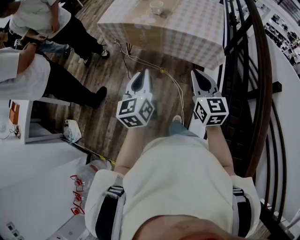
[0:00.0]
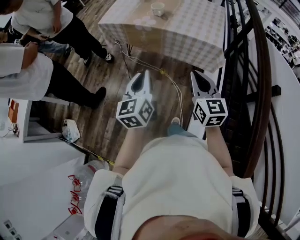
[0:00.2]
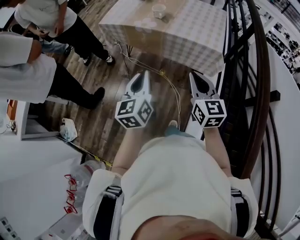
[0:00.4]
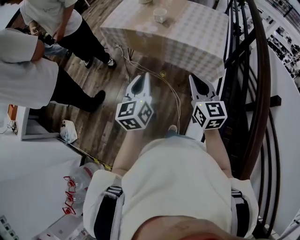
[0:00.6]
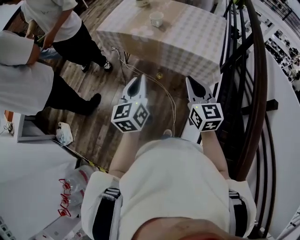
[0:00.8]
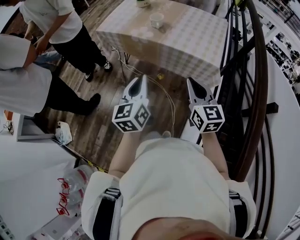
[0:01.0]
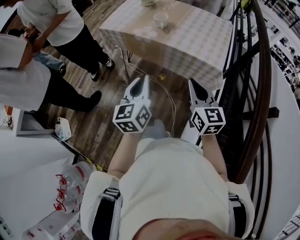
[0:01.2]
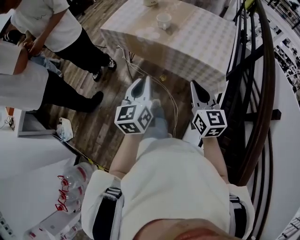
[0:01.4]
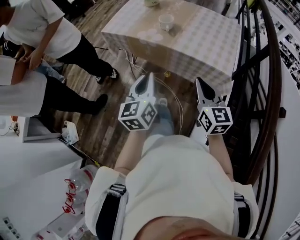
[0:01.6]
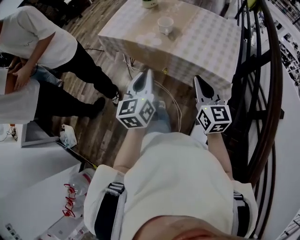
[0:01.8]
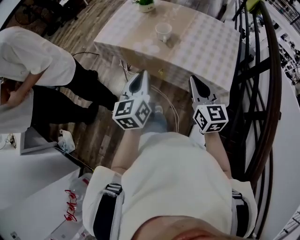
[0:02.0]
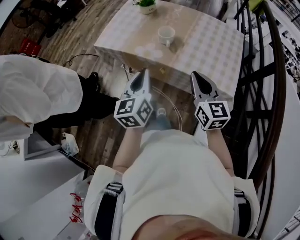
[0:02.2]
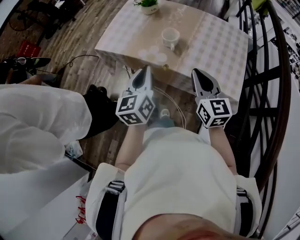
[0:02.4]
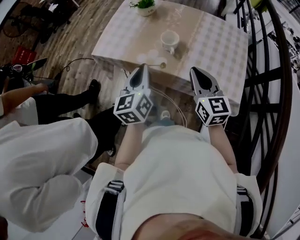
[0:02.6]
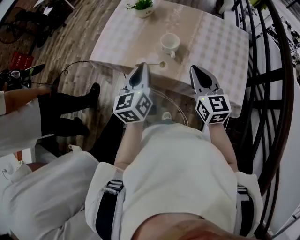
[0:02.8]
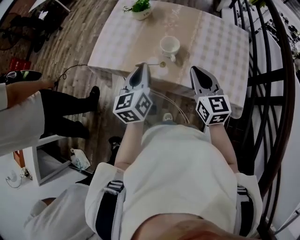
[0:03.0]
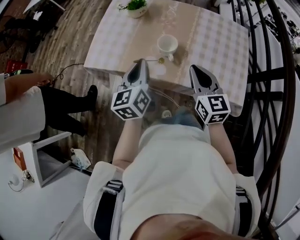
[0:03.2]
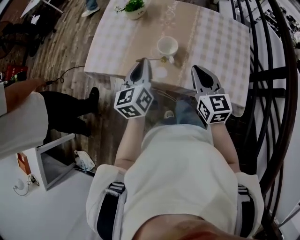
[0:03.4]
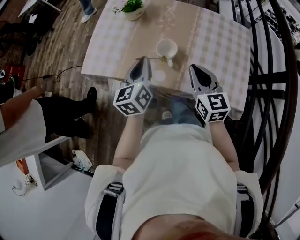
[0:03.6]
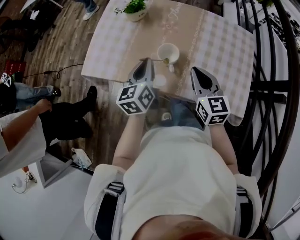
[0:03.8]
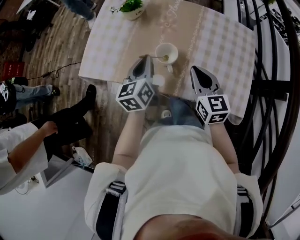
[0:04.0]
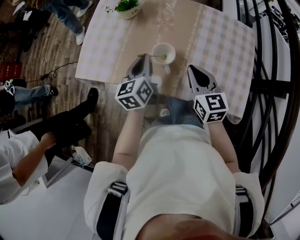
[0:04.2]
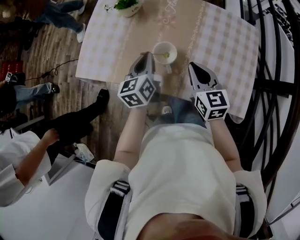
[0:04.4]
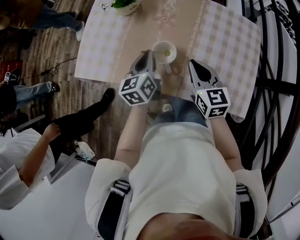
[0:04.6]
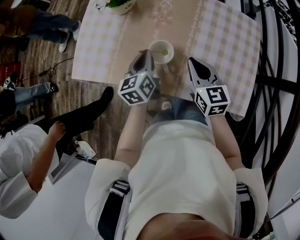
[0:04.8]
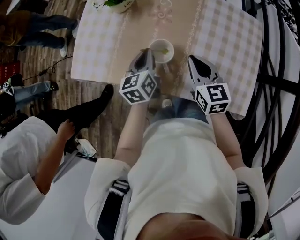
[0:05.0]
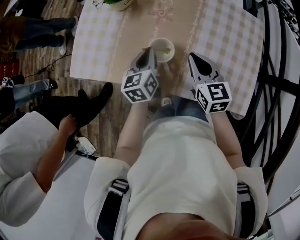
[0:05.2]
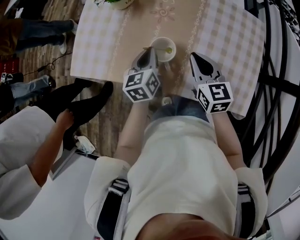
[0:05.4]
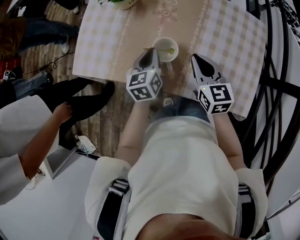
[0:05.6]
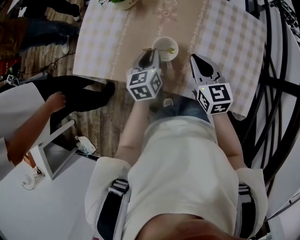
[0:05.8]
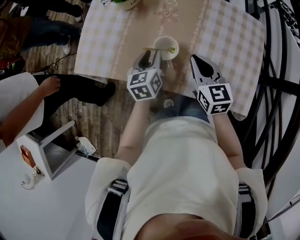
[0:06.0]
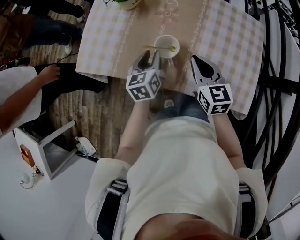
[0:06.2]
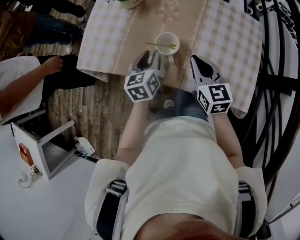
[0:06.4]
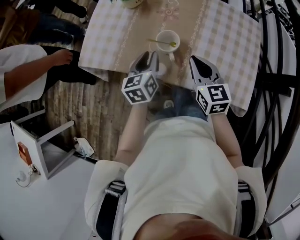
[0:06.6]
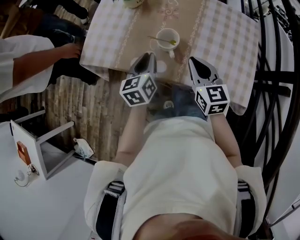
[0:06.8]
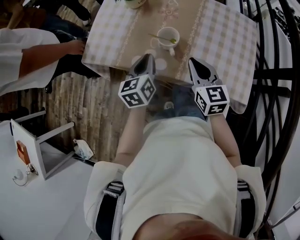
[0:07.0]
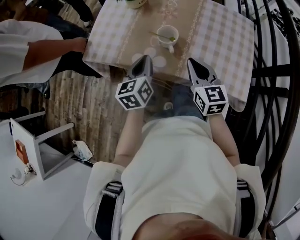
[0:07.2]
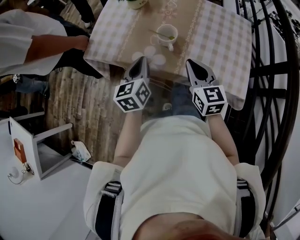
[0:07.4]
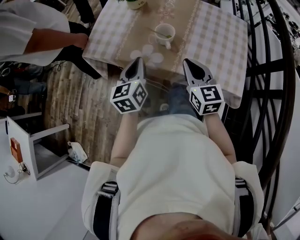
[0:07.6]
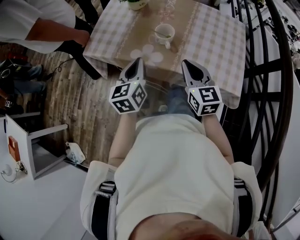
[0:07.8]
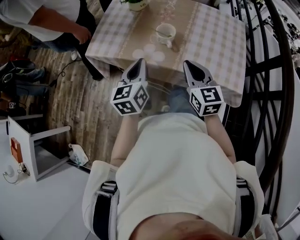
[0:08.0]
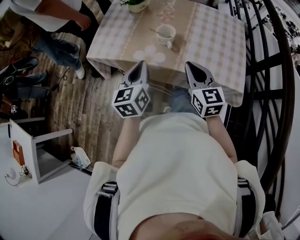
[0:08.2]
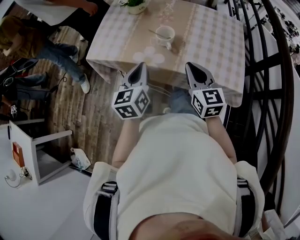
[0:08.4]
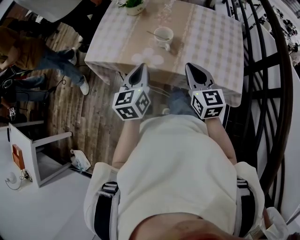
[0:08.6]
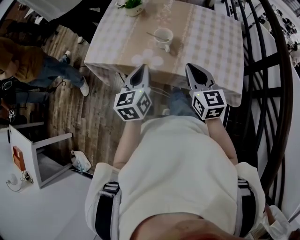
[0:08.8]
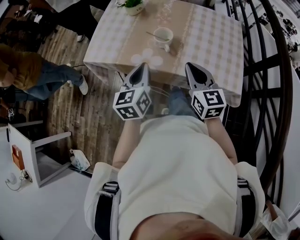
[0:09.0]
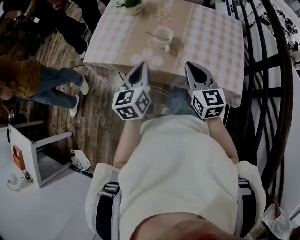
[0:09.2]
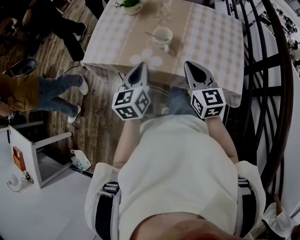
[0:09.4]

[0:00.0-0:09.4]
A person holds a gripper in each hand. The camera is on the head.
0:00.0 to 0:01.6: Both grippers travel together forward, some 10 cm.
0:01.6 to 0:03.2: Both grippers travel together forward, about 30 cm.
0:03.2 to 0:04.8: The right gripper shifts about 15 cm forward and downward; the left gripper is displaced downward, forward and to the right by roughly 15 cm.
0:04.8 to 0:06.2: The left gripper opens.
0:06.2 to 0:07.8: The right gripper goes some 10 cm backward and upward, while the left gripper is displaced upward and backward by about 15 cm, and closes up.
0:07.8 to 0:09.4: The grippers stay close to where they were, moving slightly.

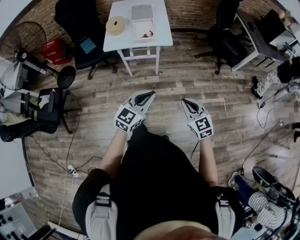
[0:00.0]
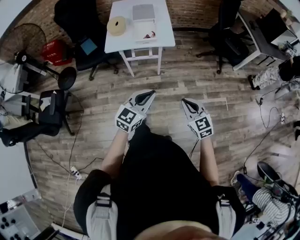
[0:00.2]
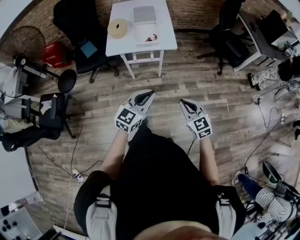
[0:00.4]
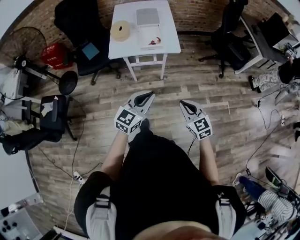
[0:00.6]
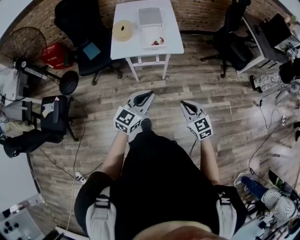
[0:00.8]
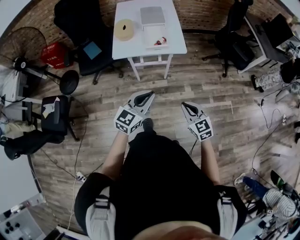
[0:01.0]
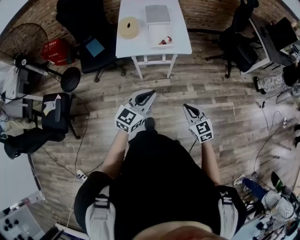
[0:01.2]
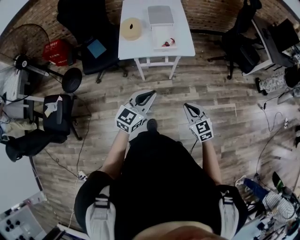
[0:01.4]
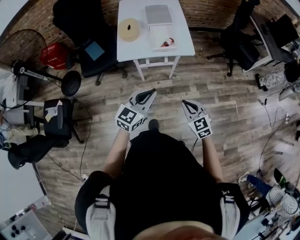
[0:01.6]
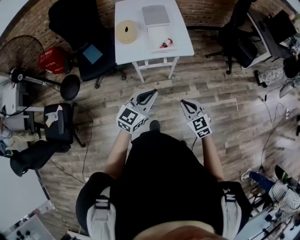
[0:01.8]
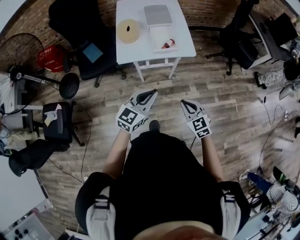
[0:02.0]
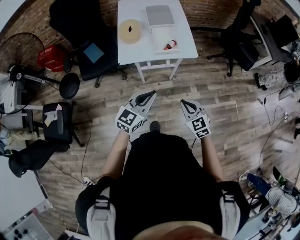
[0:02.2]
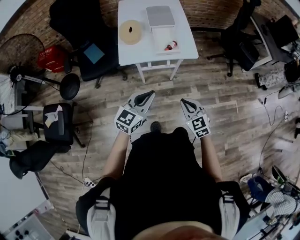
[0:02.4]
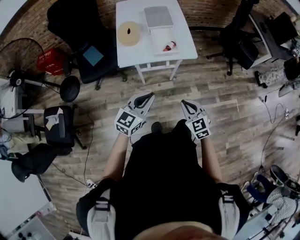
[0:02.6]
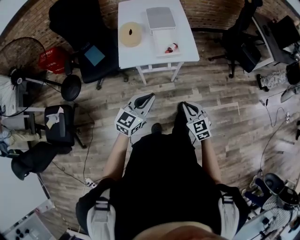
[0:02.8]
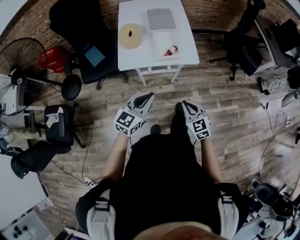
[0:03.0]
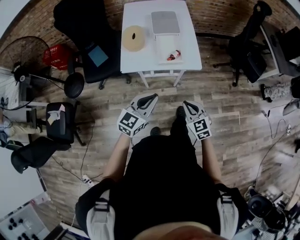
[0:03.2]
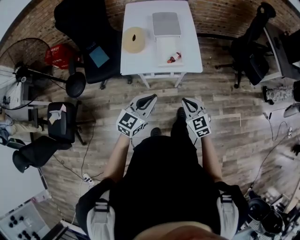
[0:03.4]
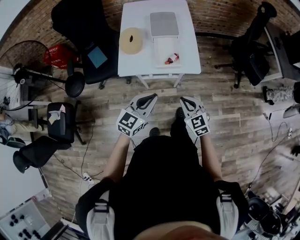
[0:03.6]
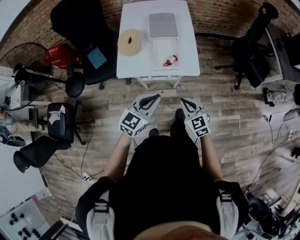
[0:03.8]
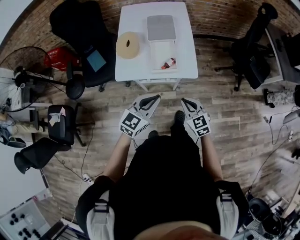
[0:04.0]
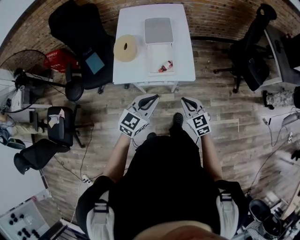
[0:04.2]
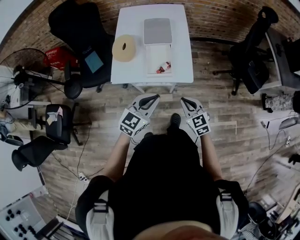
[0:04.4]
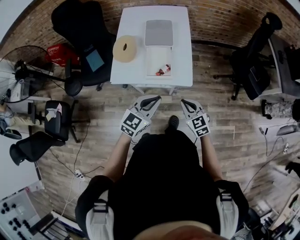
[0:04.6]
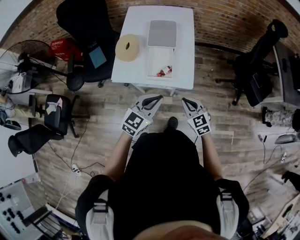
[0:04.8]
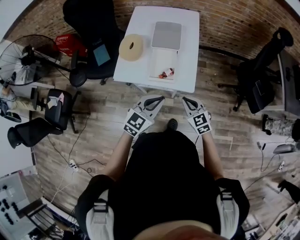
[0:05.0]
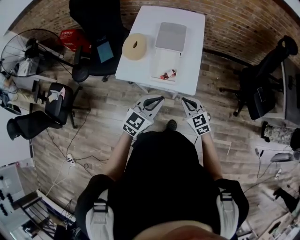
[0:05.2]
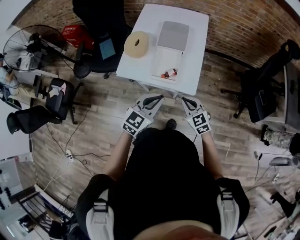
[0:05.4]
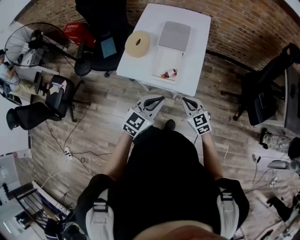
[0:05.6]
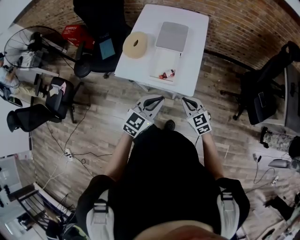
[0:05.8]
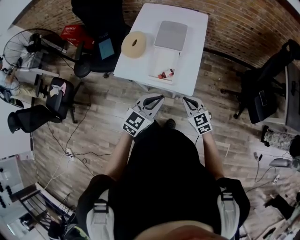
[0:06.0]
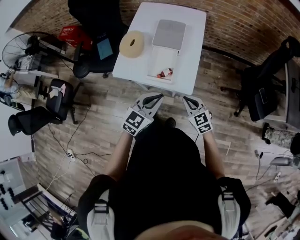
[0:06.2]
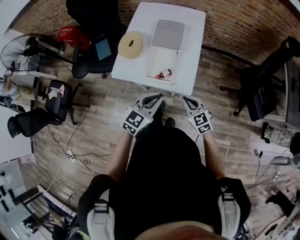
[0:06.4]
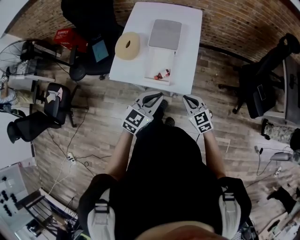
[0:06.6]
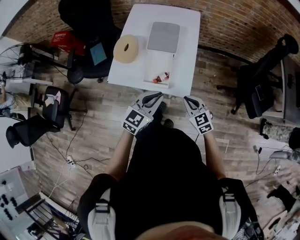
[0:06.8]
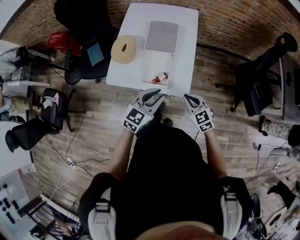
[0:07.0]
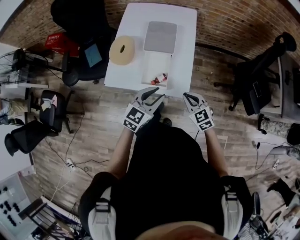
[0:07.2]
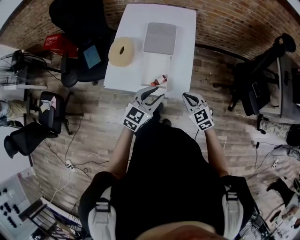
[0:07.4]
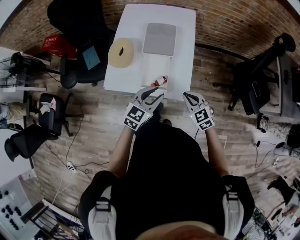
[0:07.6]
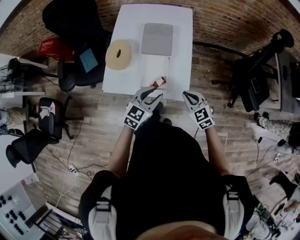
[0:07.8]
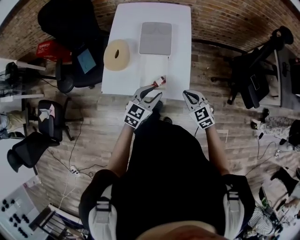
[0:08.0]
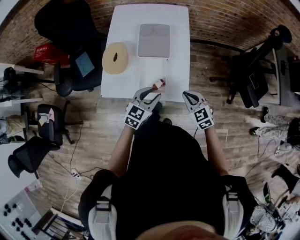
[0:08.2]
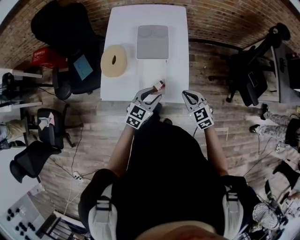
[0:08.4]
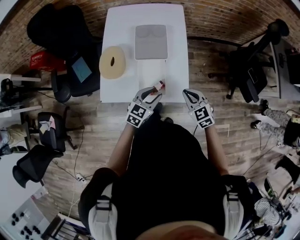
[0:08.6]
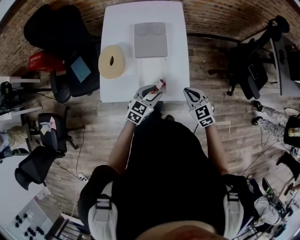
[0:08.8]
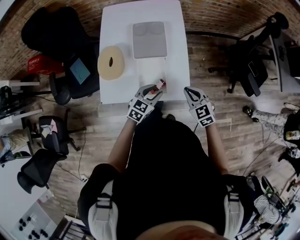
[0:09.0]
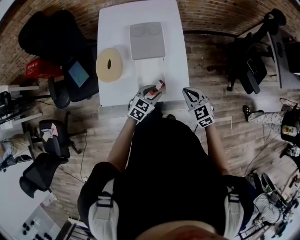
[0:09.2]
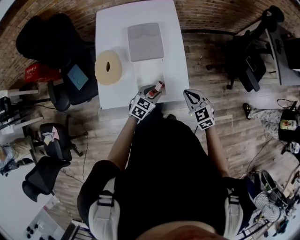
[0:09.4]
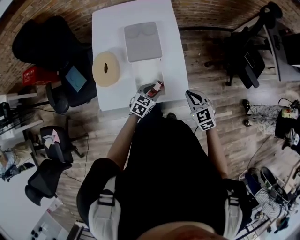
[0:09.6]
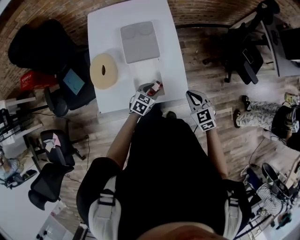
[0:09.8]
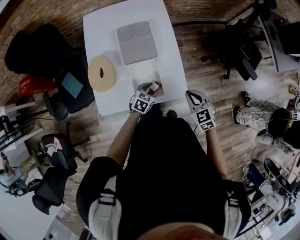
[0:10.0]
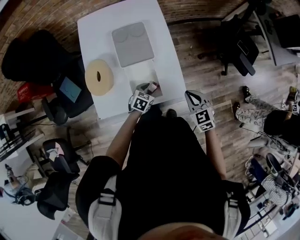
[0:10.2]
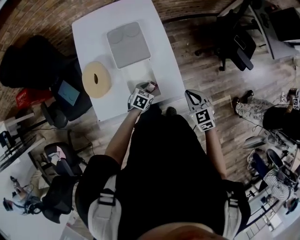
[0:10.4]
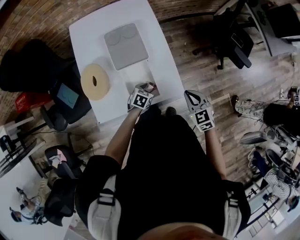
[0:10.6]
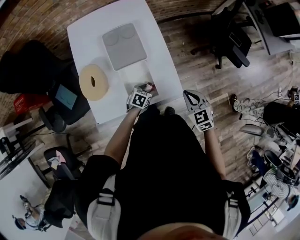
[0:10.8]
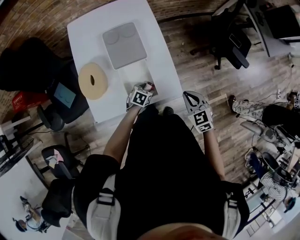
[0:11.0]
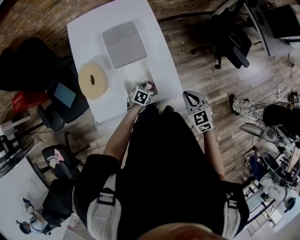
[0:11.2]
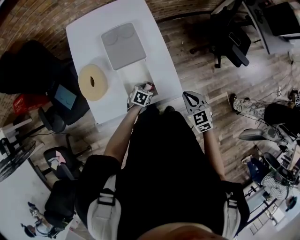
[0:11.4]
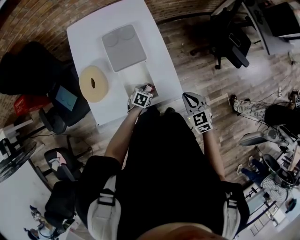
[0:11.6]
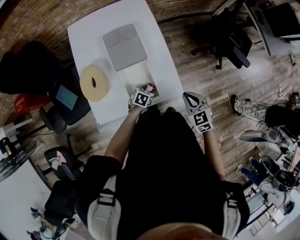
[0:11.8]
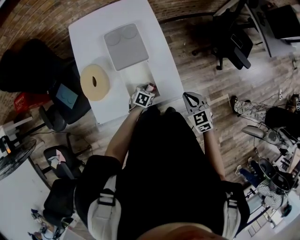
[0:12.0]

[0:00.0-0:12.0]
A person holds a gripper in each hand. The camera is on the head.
0:00.0 to 0:01.6: The two grippers go roughly 25 cm to the left and forward.
0:01.6 to 0:03.0: The two grippers go some 10 cm forward.
0:03.0 to 0:04.4: The two grippers go roughly 20 cm forward and to the right.
0:04.4 to 0:06.0: The left gripper is displaced to the right by approximately 5 cm. The right gripper is displaced forward and to the right by some 10 cm.
0:06.0 to 0:07.6: Both grippers travel together forward, roughly 10 cm. The left gripper opens.
0:07.6 to 0:09.0: The right gripper goes about 5 cm forward. Meanwhile the left gripper shifts roughly 15 cm downward and forward.
0:09.0 to 0:10.4: The left gripper shifts roughly 15 cm downward, and rotates about 20 degrees.
0:10.4 to 0:12.0: The grippers move only a little.

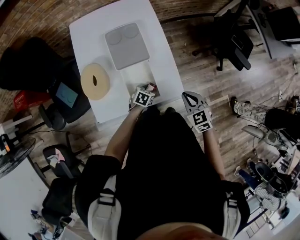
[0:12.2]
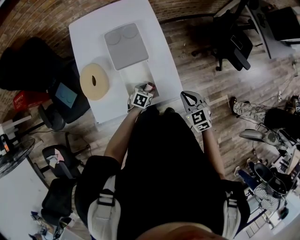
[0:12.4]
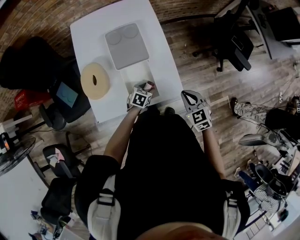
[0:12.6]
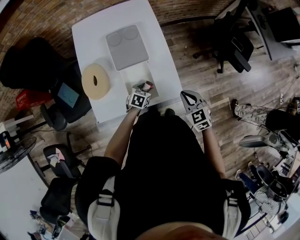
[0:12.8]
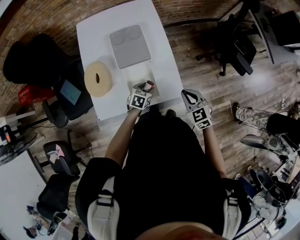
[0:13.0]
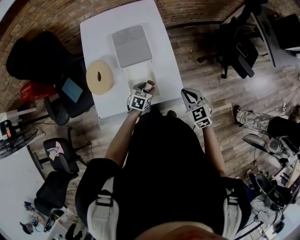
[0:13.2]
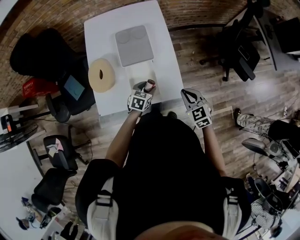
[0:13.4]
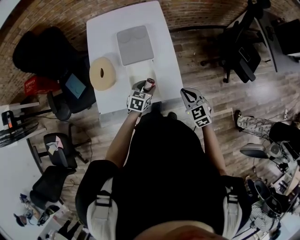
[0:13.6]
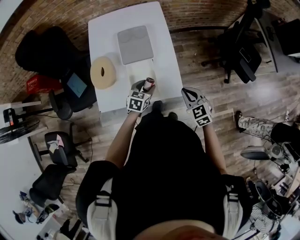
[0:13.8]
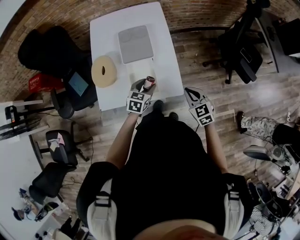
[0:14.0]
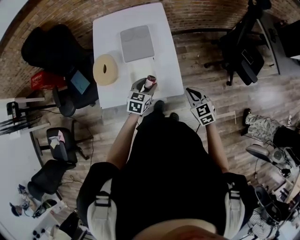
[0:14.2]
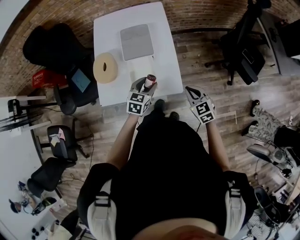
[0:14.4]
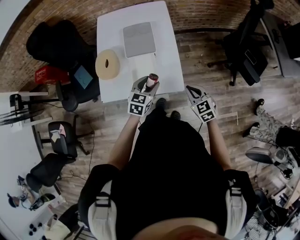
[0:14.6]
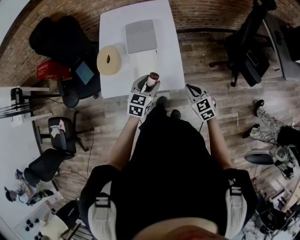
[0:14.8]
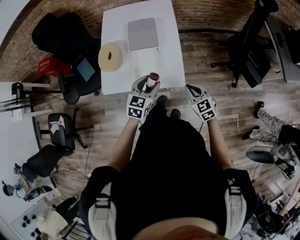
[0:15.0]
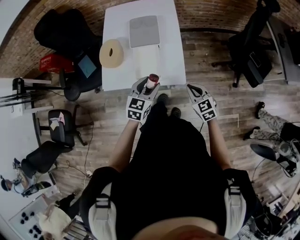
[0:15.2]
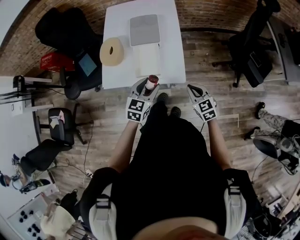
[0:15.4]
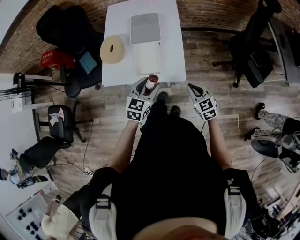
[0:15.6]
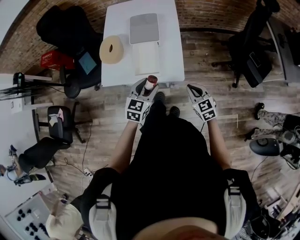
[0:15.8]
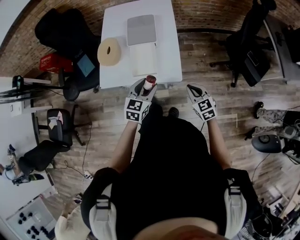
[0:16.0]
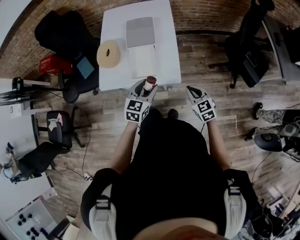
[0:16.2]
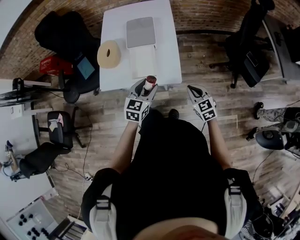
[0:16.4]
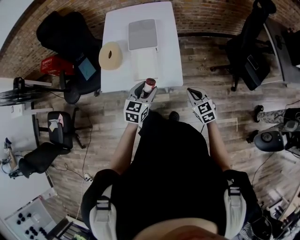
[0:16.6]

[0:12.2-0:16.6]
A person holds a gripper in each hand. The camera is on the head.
0:12.2 to 0:13.6: The left gripper is displaced upward by some 10 cm, and changes its angle by some 20 degrees.
0:13.6 to 0:15.2: The right gripper goes about 10 cm backward and to the right; the left gripper shifts roughly 20 cm upward and backward, and swivels about 20 degrees.
0:15.2 to 0:16.6: The grippers make only small movements.
